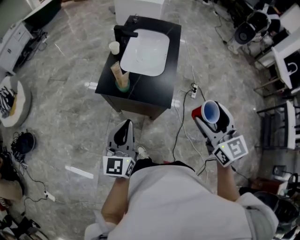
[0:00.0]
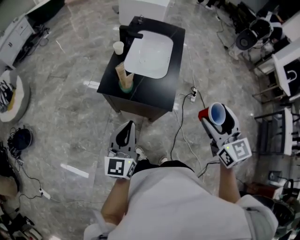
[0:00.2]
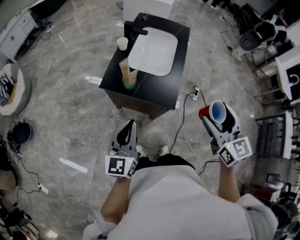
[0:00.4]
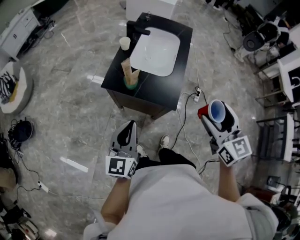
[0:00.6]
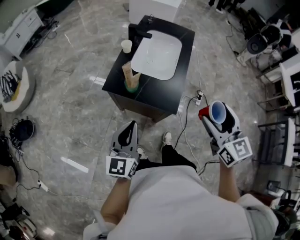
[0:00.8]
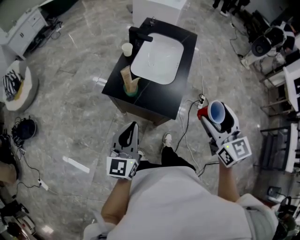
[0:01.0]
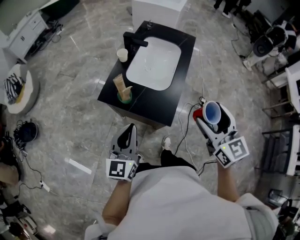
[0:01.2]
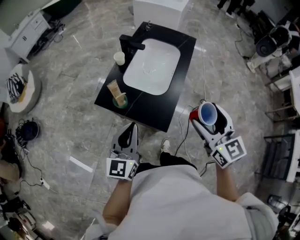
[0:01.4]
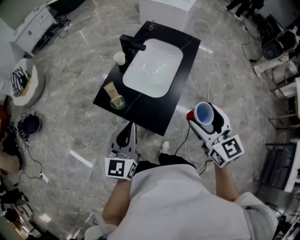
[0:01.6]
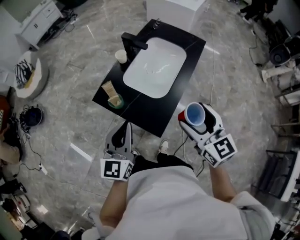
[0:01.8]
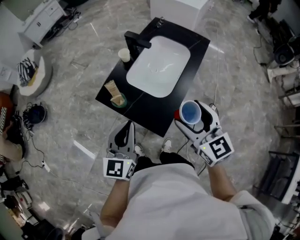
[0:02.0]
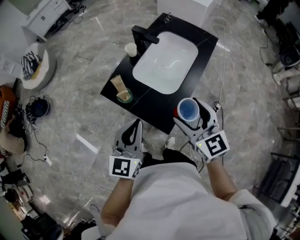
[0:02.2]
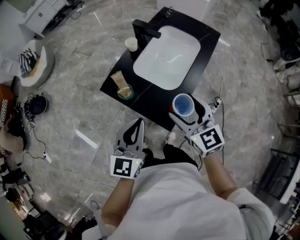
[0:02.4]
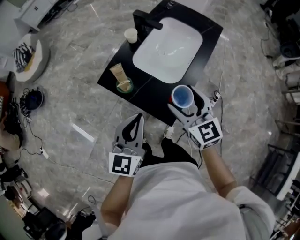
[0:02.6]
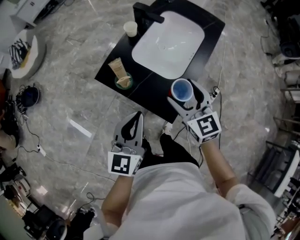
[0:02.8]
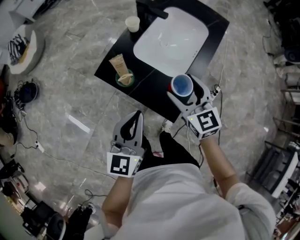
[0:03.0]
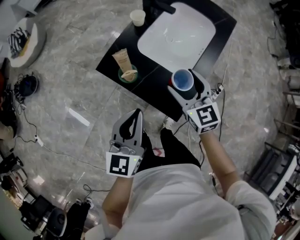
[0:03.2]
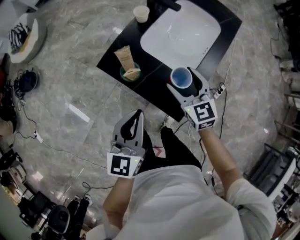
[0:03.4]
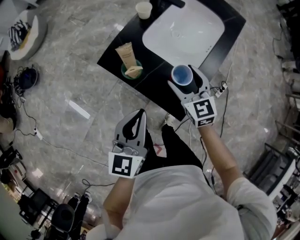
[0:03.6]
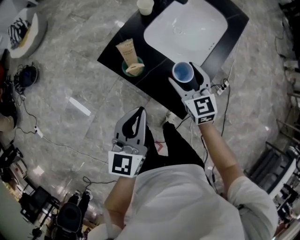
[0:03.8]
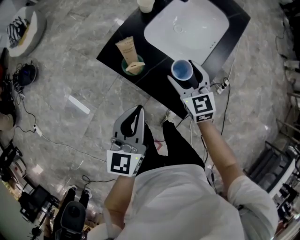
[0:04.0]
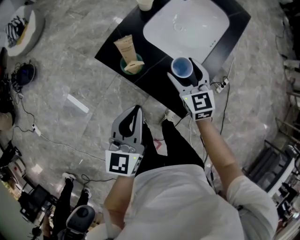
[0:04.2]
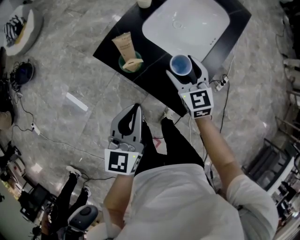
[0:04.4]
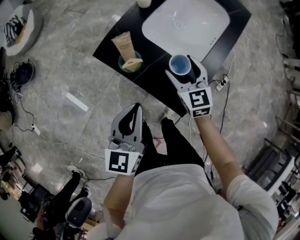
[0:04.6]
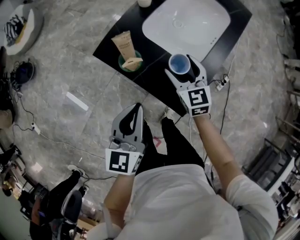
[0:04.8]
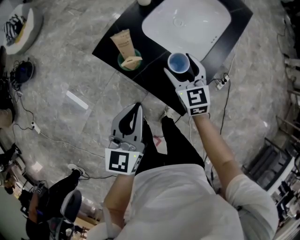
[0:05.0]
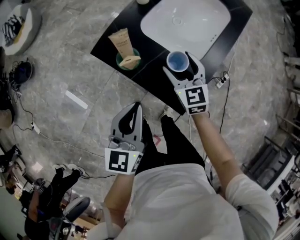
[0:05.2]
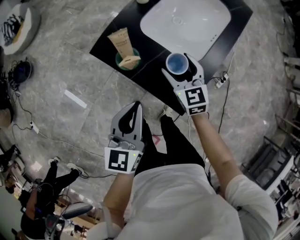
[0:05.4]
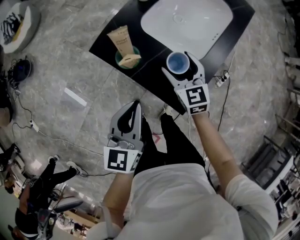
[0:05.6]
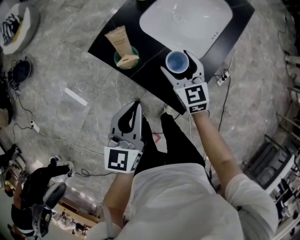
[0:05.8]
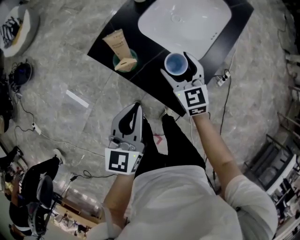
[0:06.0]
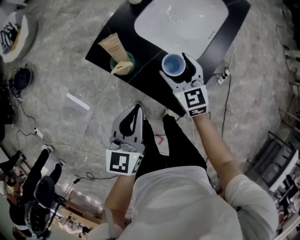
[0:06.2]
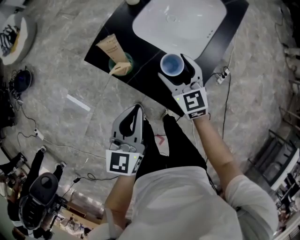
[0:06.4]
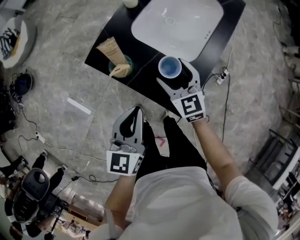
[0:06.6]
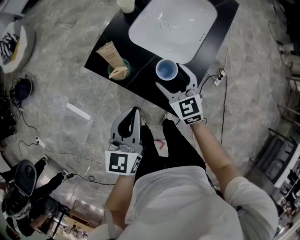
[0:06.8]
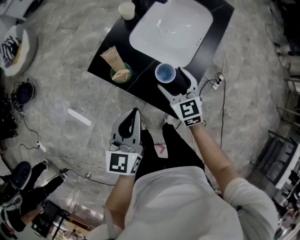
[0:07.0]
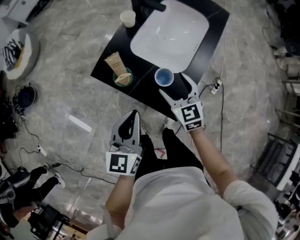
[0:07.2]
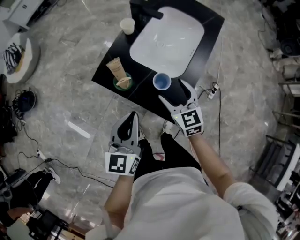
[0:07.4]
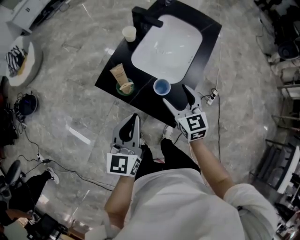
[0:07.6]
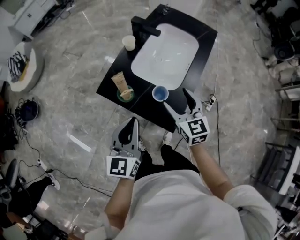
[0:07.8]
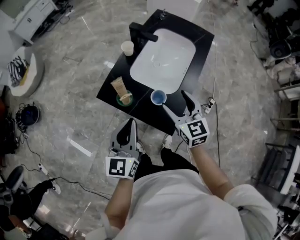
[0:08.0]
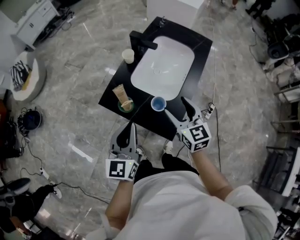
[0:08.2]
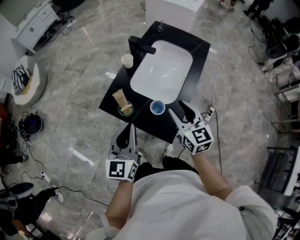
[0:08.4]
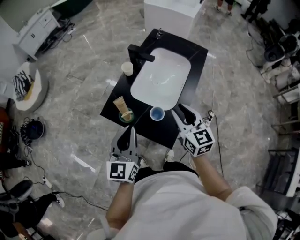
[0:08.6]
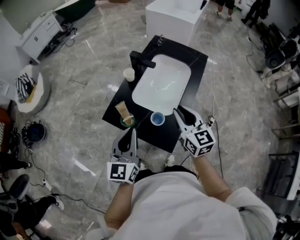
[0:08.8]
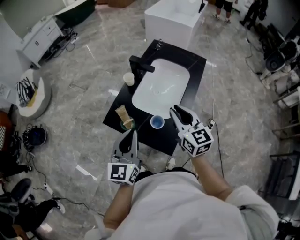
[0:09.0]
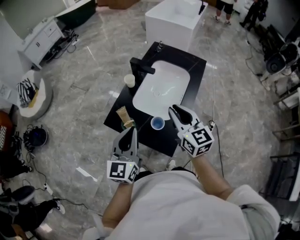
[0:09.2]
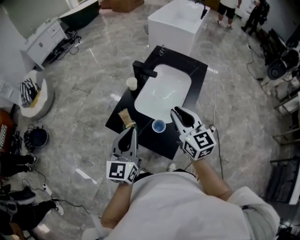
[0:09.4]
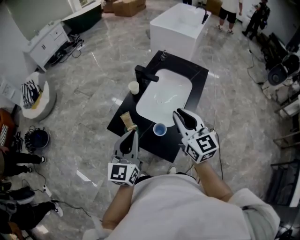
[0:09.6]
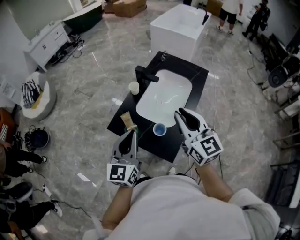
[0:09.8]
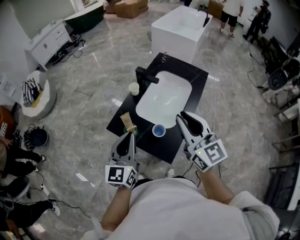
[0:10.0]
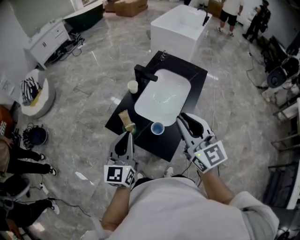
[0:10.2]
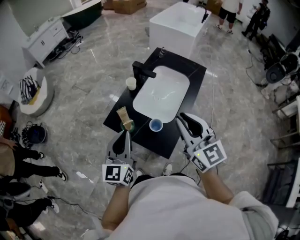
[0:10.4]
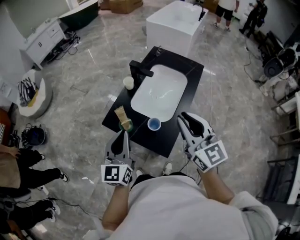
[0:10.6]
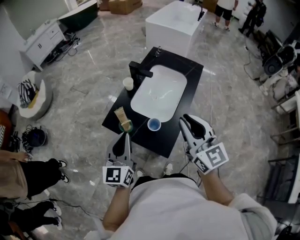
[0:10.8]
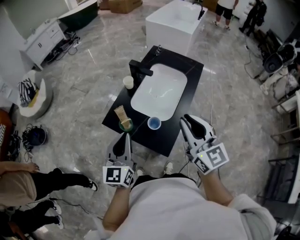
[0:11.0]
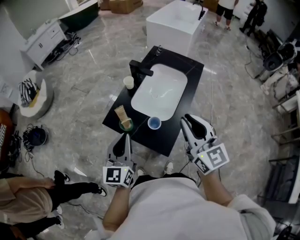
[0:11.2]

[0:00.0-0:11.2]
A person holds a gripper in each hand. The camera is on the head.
0:00.0 to 0:01.6: The right gripper goes roughly 15 cm forward; the left gripper is displaced forward and to the right by approximately 15 cm.
0:01.6 to 0:03.2: The left gripper is displaced downward by some 5 cm. Meanwhile the right gripper shifts roughly 25 cm downward, forward and to the left.
0:03.2 to 0:04.8: The left gripper is displaced downward by roughly 5 cm; the right gripper shifts about 10 cm downward.
0:04.8 to 0:06.4: The grippers make only small movements.
0:06.4 to 0:08.0: Both grippers travel together upward, roughly 10 cm.
0:08.0 to 0:09.6: The left gripper is displaced upward by about 5 cm, while the right gripper moves upward, some 15 cm, and closes up.
0:09.6 to 0:11.2: The right gripper goes about 5 cm backward.

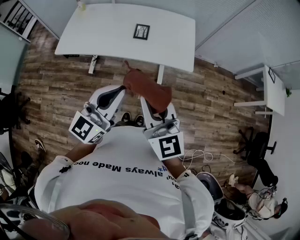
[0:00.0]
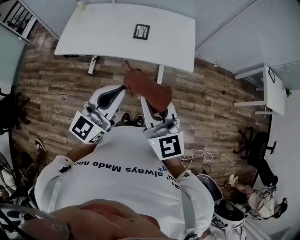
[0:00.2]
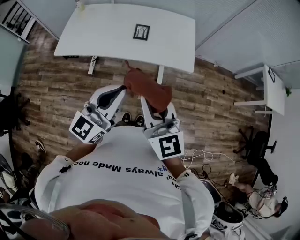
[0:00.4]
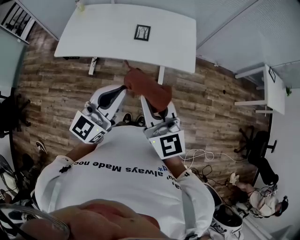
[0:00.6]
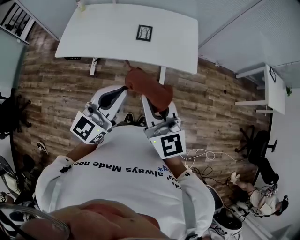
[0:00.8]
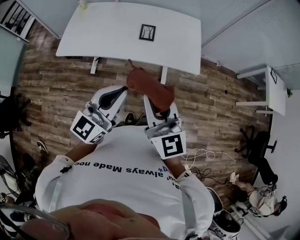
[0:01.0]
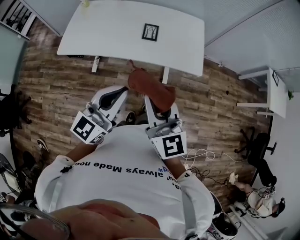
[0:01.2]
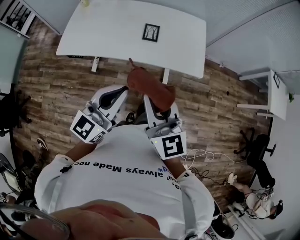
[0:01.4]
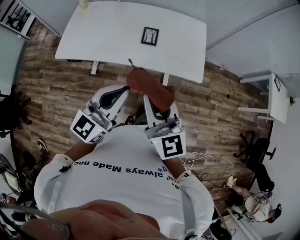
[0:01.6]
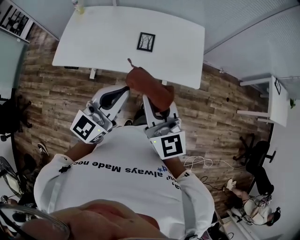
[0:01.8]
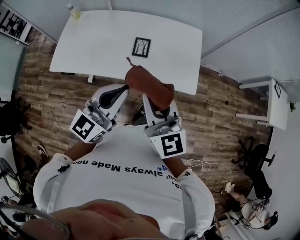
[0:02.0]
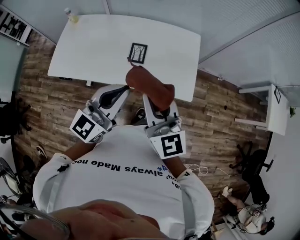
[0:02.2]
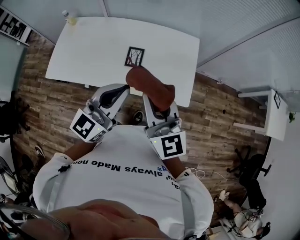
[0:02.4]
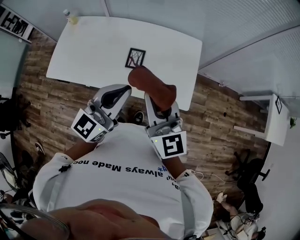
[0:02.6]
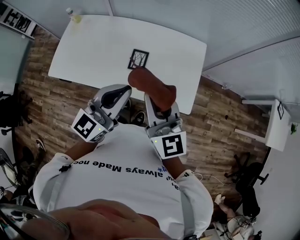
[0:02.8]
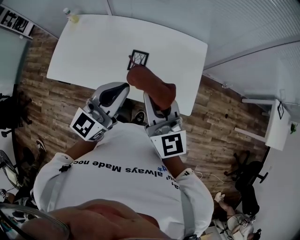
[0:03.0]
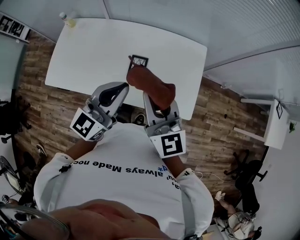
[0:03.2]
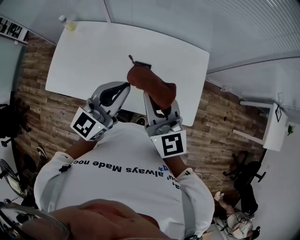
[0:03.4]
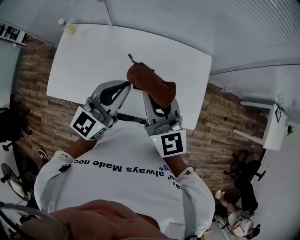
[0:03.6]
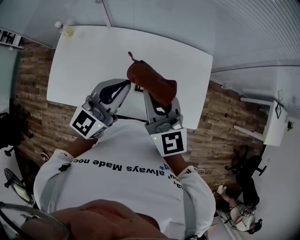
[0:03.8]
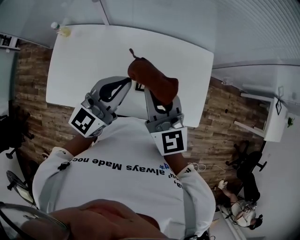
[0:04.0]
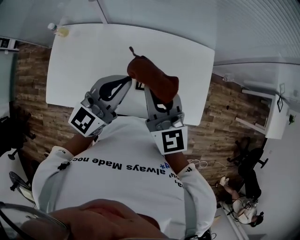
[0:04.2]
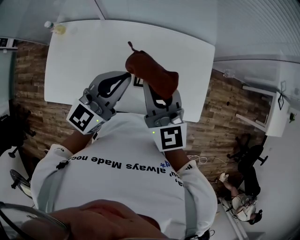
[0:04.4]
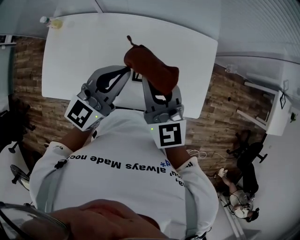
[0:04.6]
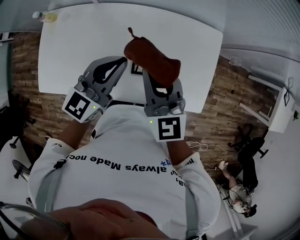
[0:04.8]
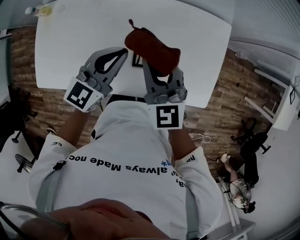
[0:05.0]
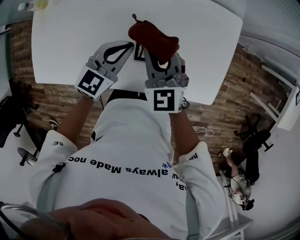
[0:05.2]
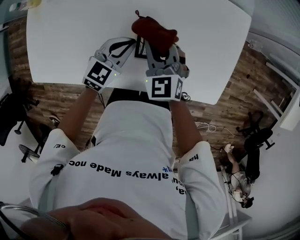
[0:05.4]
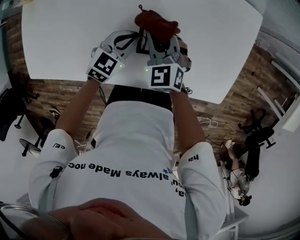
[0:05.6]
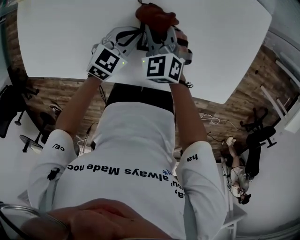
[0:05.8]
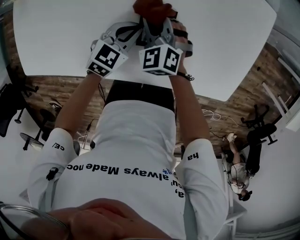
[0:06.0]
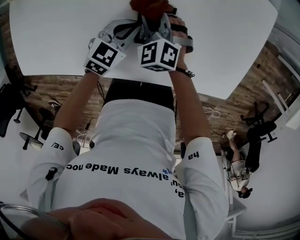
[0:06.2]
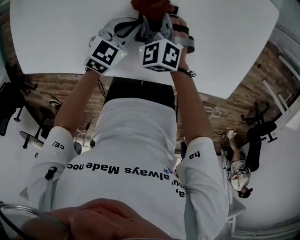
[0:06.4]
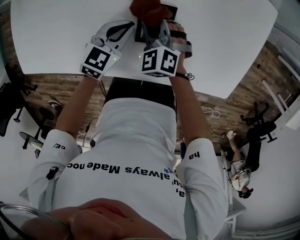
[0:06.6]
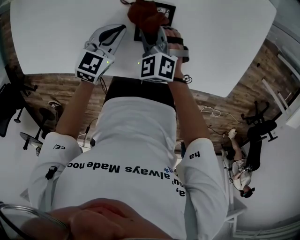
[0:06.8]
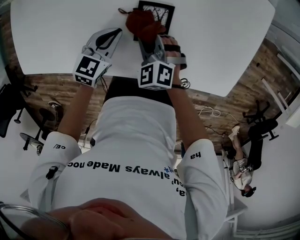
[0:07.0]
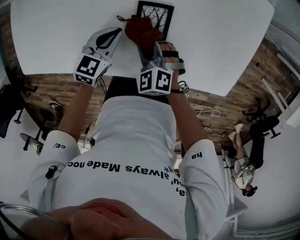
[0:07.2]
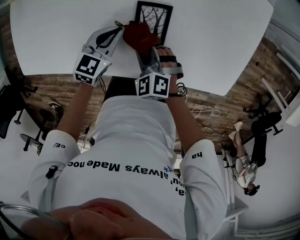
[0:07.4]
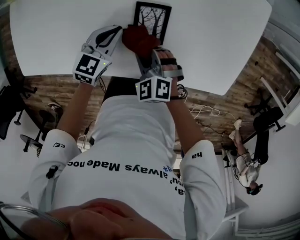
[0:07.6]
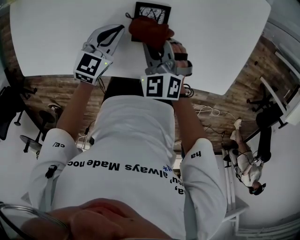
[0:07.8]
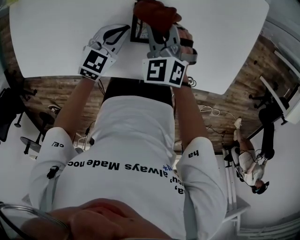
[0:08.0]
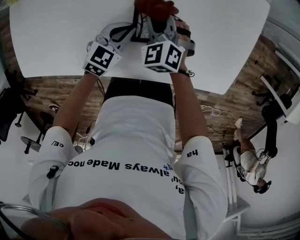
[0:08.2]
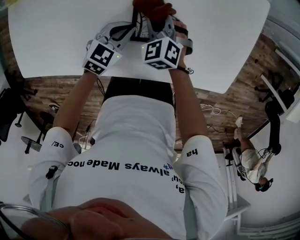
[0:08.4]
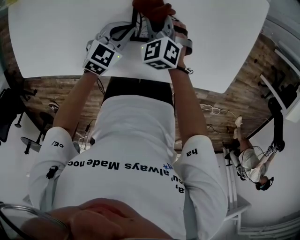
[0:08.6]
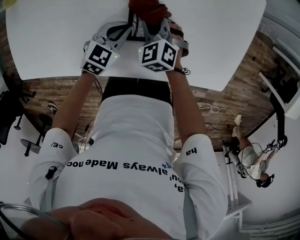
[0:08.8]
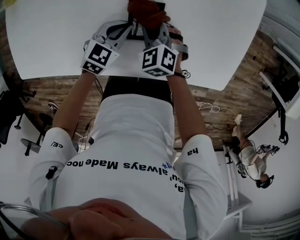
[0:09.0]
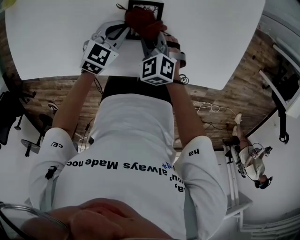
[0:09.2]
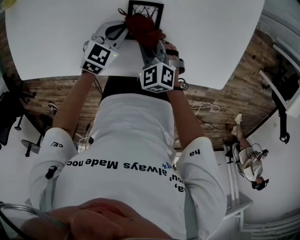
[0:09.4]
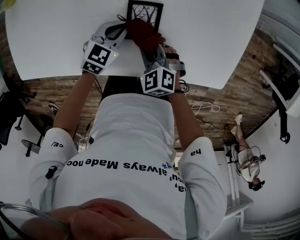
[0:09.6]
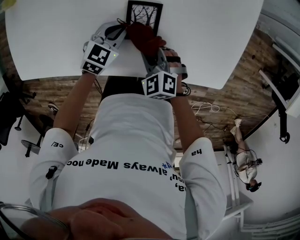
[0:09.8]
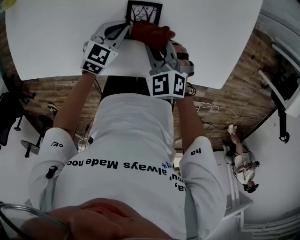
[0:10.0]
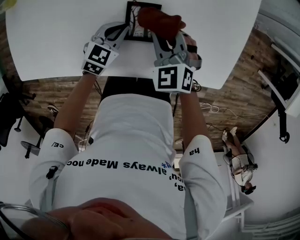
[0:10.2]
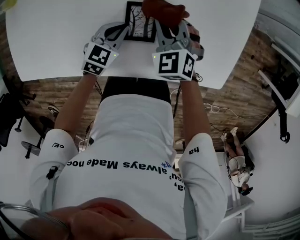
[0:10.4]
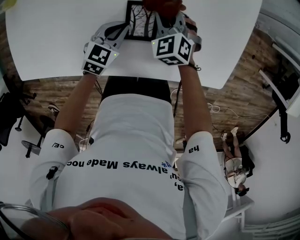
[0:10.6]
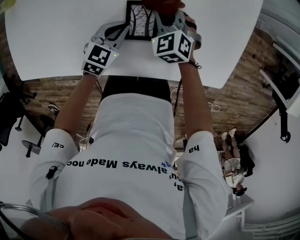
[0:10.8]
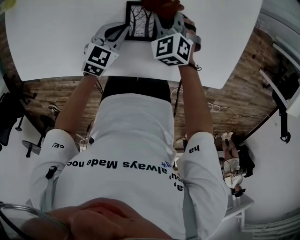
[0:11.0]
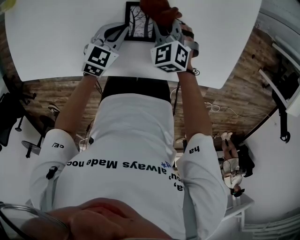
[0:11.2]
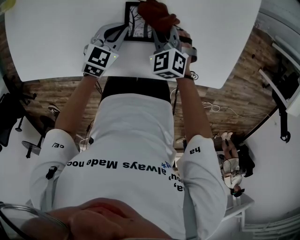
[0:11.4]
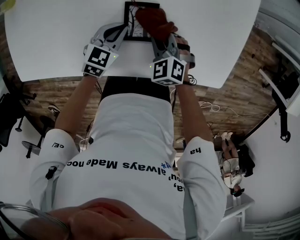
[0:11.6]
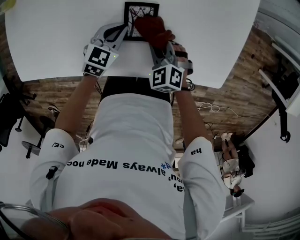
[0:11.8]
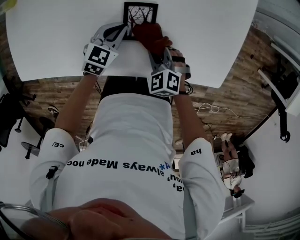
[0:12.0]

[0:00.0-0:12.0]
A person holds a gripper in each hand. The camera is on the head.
0:00.0 to 0:01.6: Both grippers move forward and to the left, some 10 cm.
0:01.6 to 0:03.0: The grippers both shift forward by approximately 25 cm.
0:03.0 to 0:04.4: The grippers both shift forward and to the left by approximately 20 cm.
0:04.4 to 0:06.0: The two grippers go roughly 40 cm downward. The right gripper tilts its fingers about 40 degrees downward. Meanwhile the left gripper tips its fingers downward by about 40 degrees.
0:06.0 to 0:07.6: The right gripper is displaced backward by approximately 15 cm.
0:07.6 to 0:09.0: The right gripper shifts approximately 10 cm forward; the left gripper ends up roughly 5 cm from where it was.
0:09.0 to 0:10.4: The right gripper shifts approximately 10 cm upward, and travels backward and back again, approximately 10 cm each way.
0:10.4 to 0:12.0: The right gripper moves backward and downward, about 15 cm.

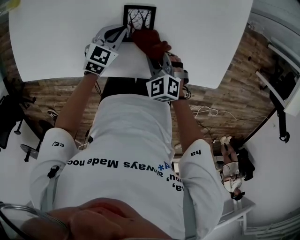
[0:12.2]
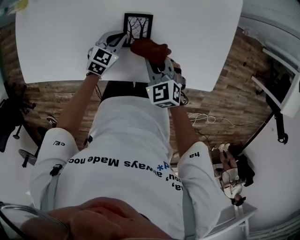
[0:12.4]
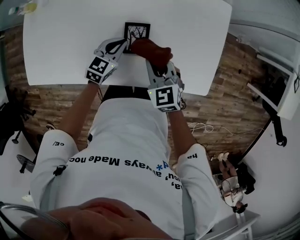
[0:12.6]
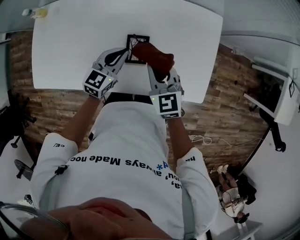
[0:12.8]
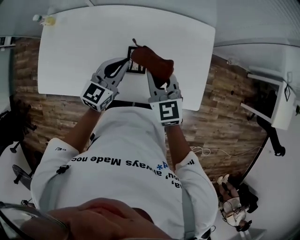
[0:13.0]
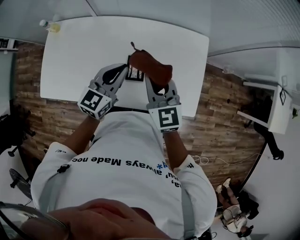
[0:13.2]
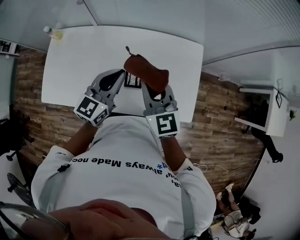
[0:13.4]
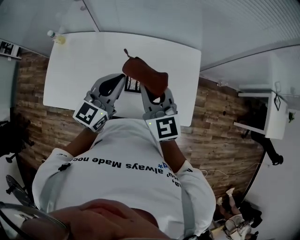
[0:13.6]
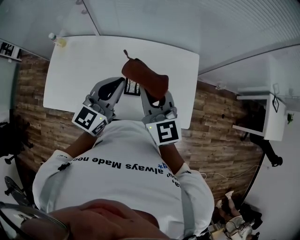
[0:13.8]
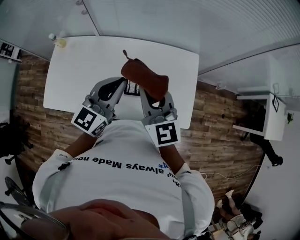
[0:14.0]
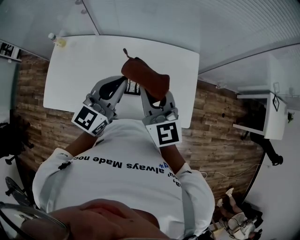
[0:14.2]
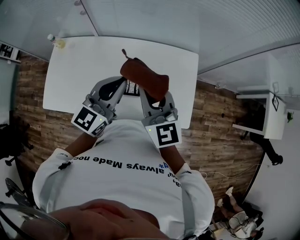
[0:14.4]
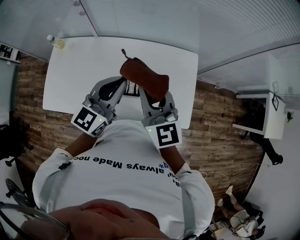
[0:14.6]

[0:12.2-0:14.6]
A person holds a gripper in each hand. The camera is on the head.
0:12.2 to 0:13.4: The two grippers go some 40 cm upward. The left gripper tips its fingers upward by approximately 30 degrees. The right gripper points its fingers approximately 40 degrees further upward.
0:13.4 to 0:14.6: Both grippers move upward, some 10 cm.
